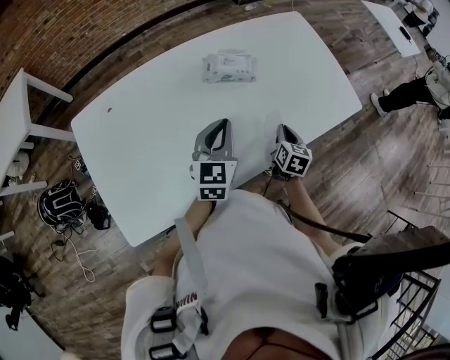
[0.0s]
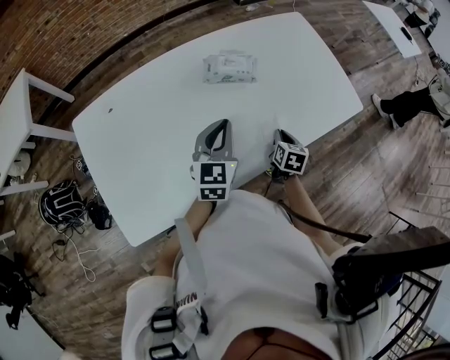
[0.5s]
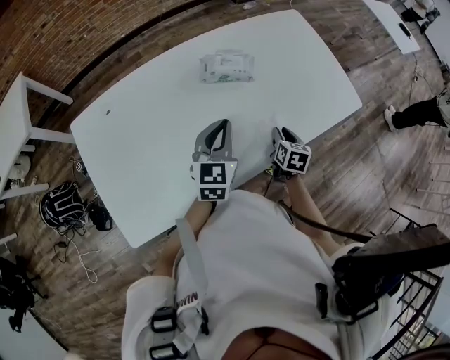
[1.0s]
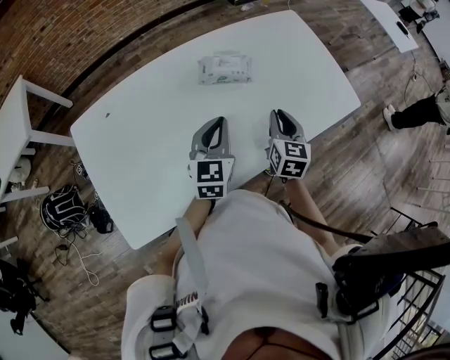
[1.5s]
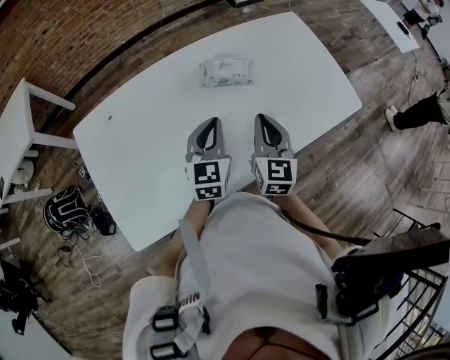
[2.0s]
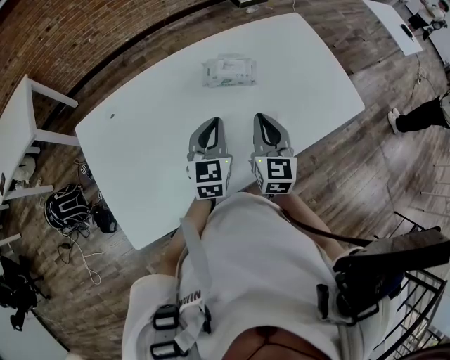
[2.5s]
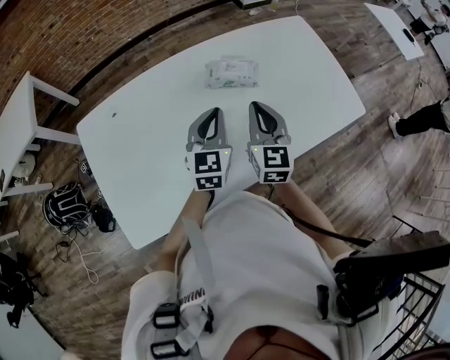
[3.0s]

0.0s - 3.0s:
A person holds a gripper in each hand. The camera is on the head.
0.0s - 1.5s: The right gripper goes about 10 cm upward and to the left.
1.5s - 3.0s: The right gripper is displaced to the left and upward by approximately 10 cm.

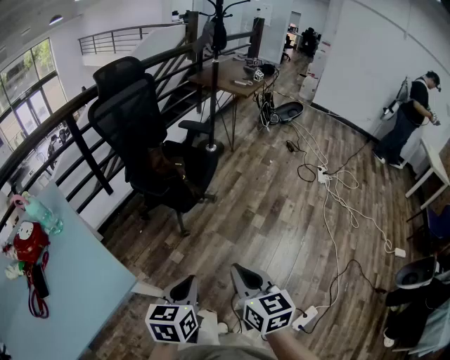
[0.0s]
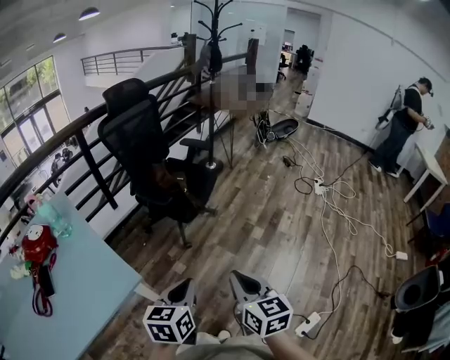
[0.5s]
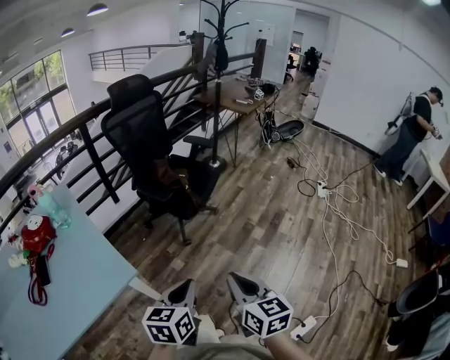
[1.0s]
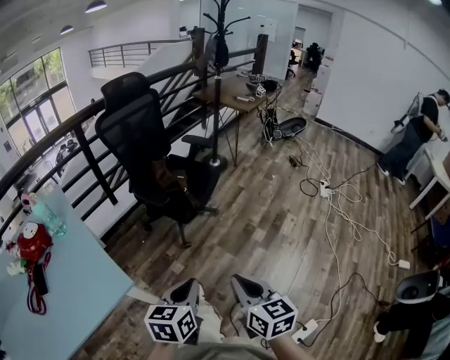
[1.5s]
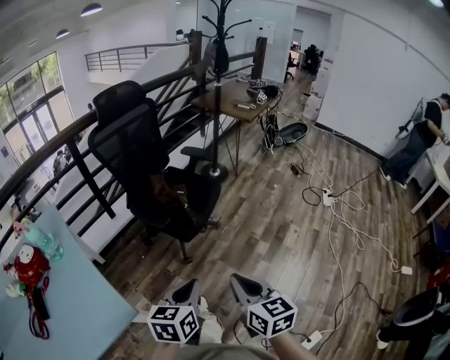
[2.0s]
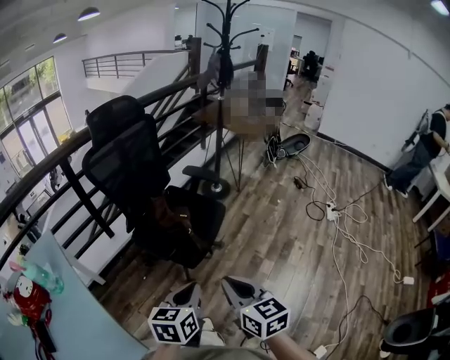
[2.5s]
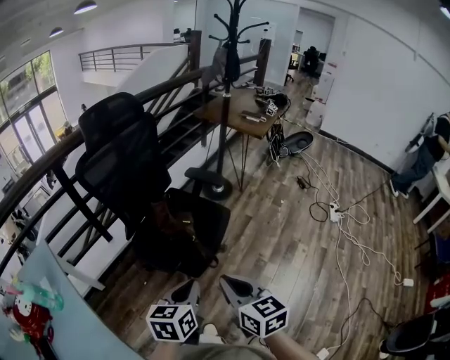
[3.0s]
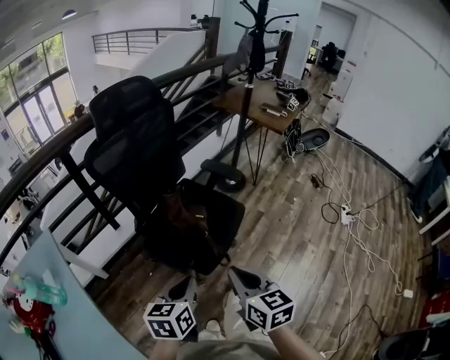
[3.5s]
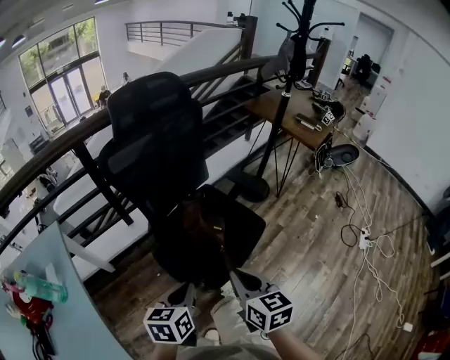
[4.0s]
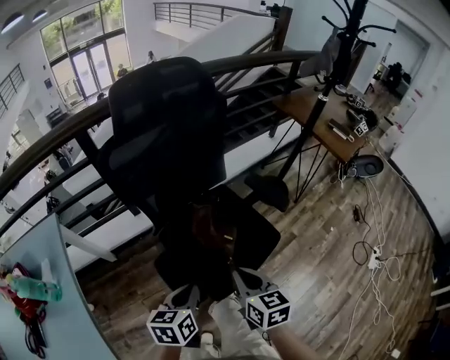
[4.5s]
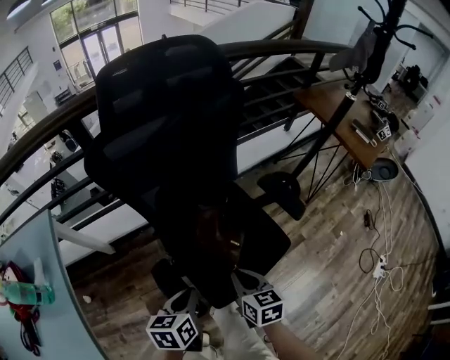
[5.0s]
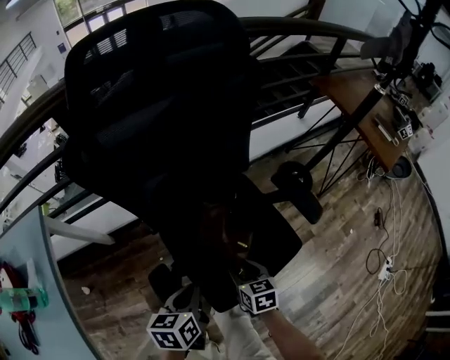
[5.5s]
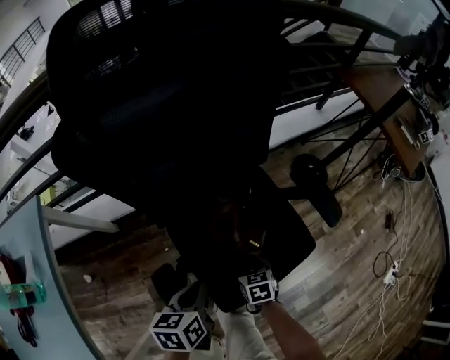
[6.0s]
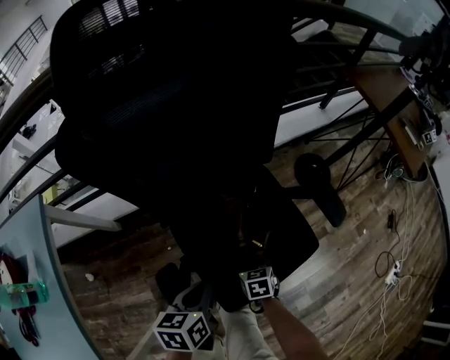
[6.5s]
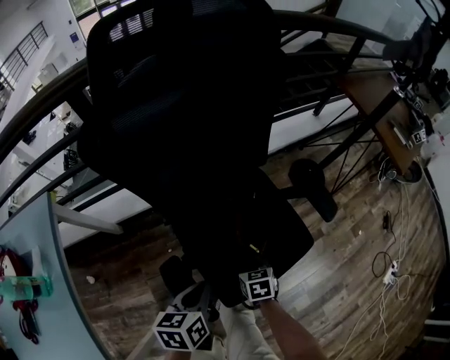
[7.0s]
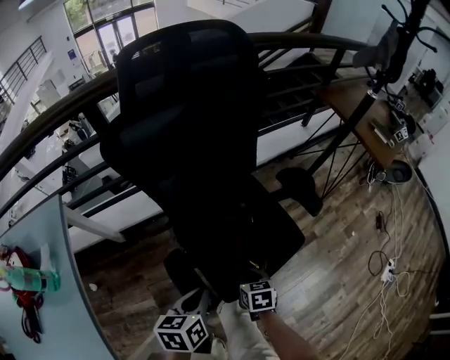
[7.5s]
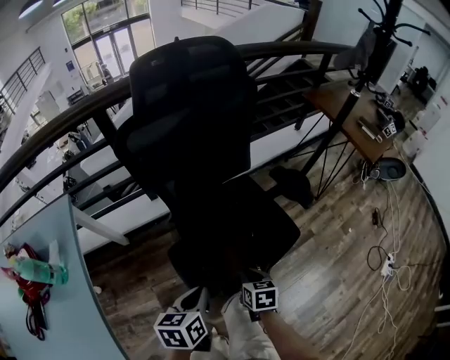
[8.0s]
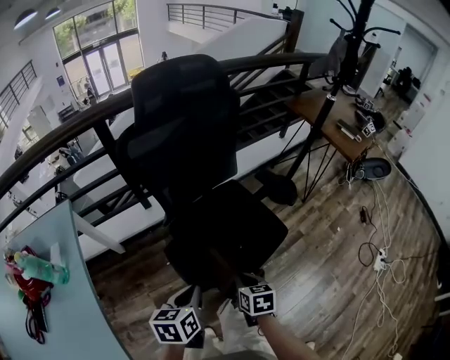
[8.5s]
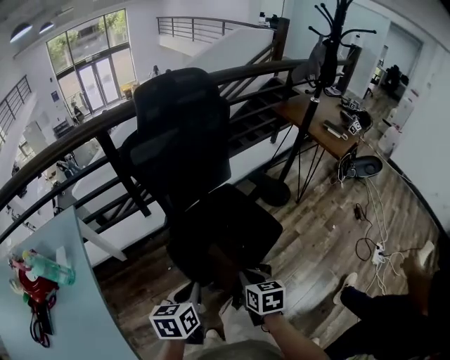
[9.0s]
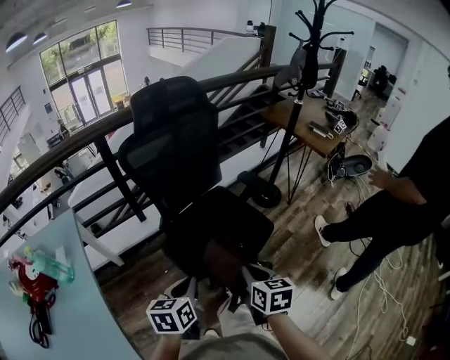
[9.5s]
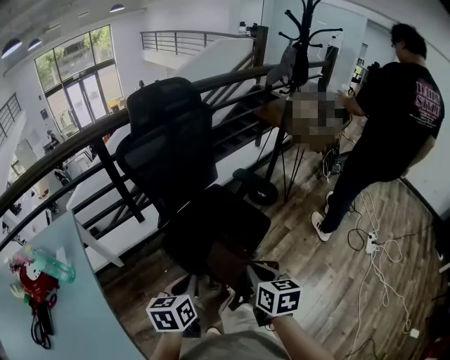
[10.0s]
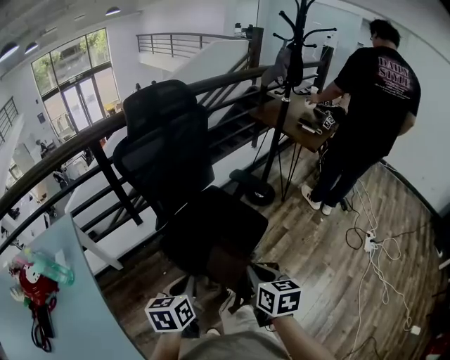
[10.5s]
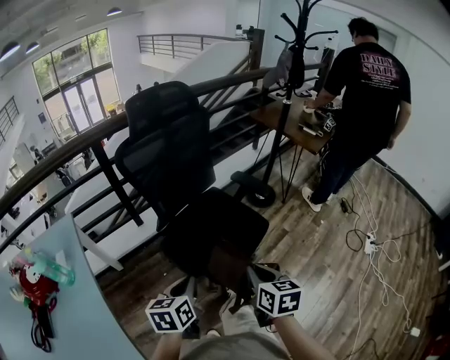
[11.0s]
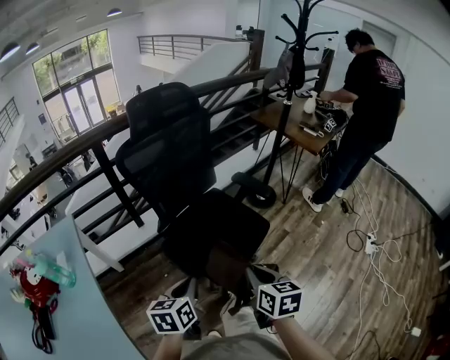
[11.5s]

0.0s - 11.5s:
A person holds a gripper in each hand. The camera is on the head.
0.0s - 2.0s: The grippers both shift forward by some 10 cm.
2.0s - 4.0s: The grippers both shift forward by about 35 cm.
4.0s - 6.0s: The right gripper moves downward and forward, approximately 40 cm, tips its fingers downward by approximately 30 degrees, and opens; the left gripper is displaced forward and downward by some 25 cm, and changes its angle by roughly 30 degrees.
6.0s - 7.5s: The left gripper travels backward and upward by some 10 cm. Meanwhile the right gripper travels upward and backward by approximately 15 cm, and closes up.
7.5s - 9.5s: The left gripper heads backward and upward, covering approximately 15 cm, while the right gripper moves upward and backward, some 30 cm, and turns by roughly 20 degrees.
9.5s - 11.5s: The grippers move only a little.

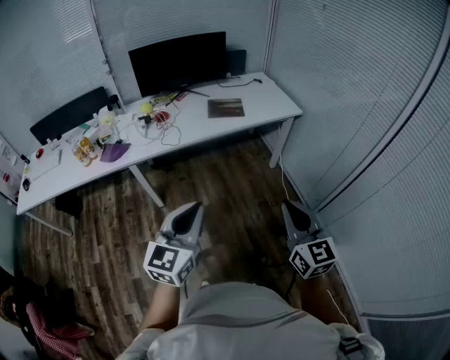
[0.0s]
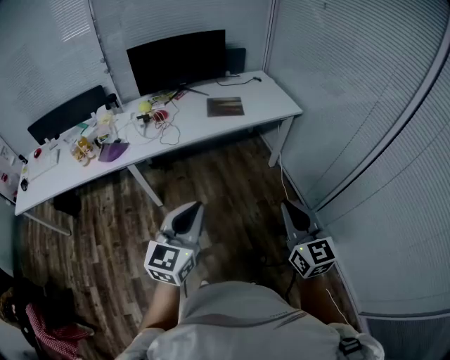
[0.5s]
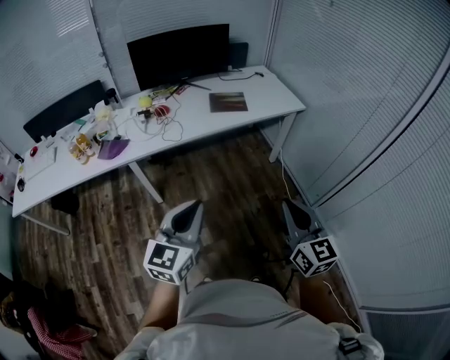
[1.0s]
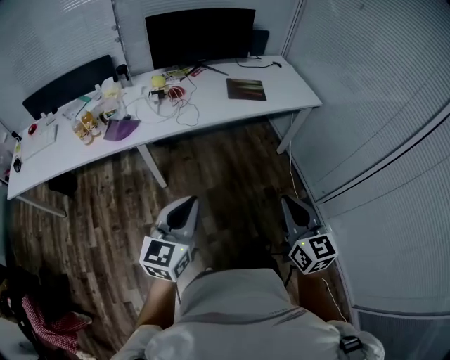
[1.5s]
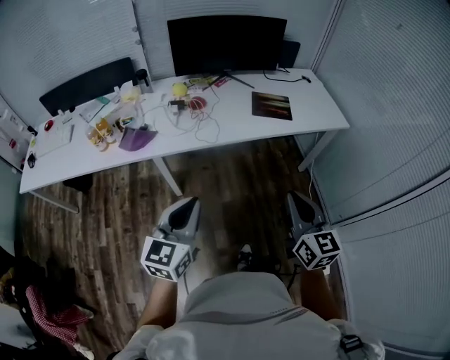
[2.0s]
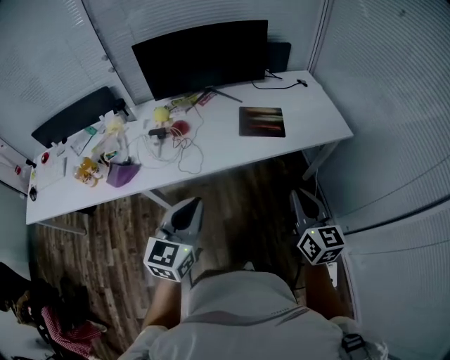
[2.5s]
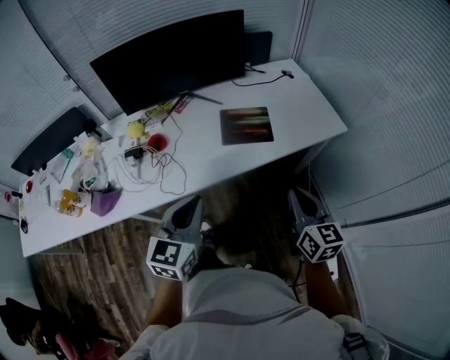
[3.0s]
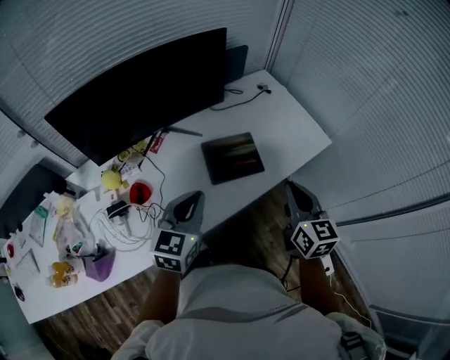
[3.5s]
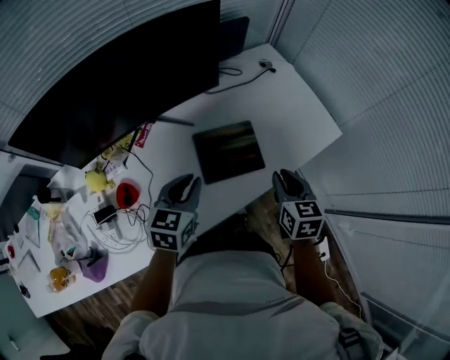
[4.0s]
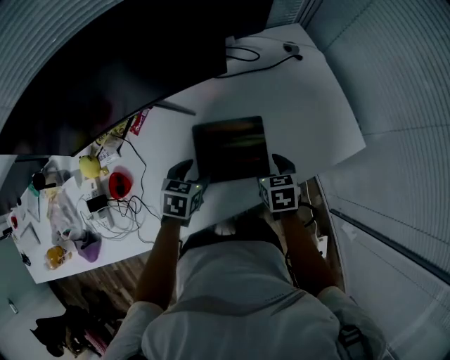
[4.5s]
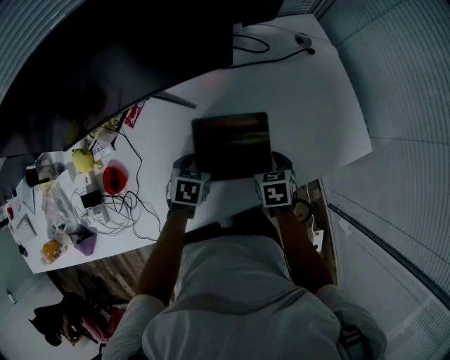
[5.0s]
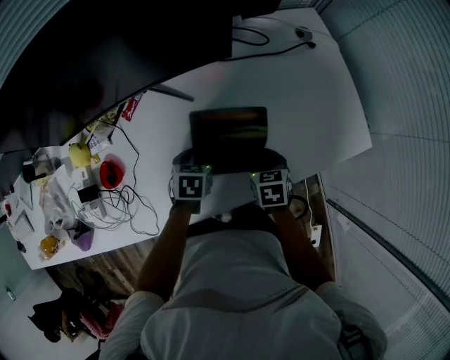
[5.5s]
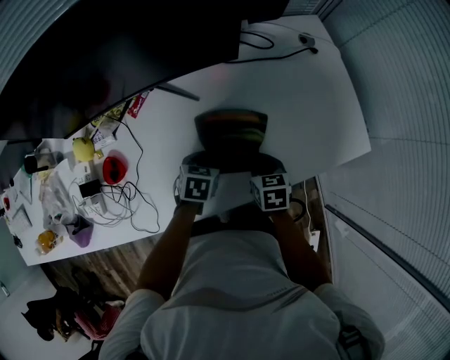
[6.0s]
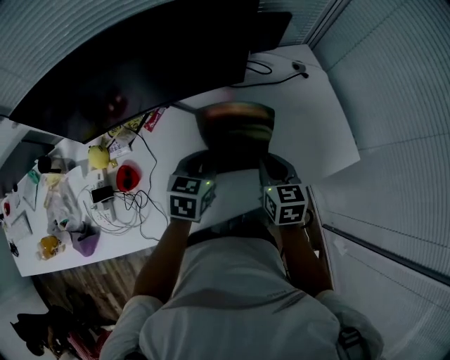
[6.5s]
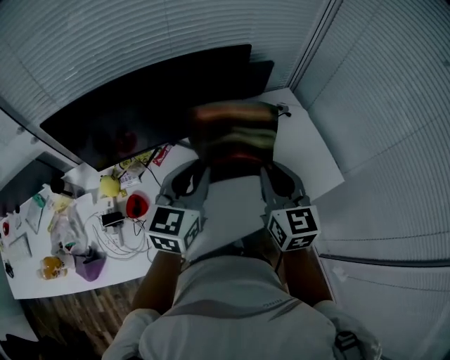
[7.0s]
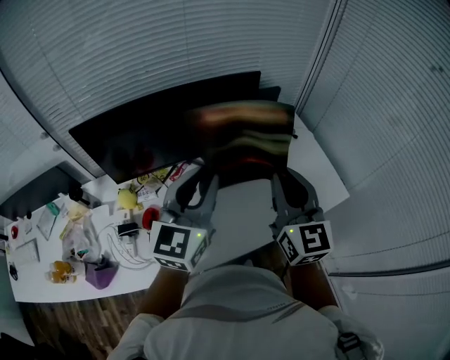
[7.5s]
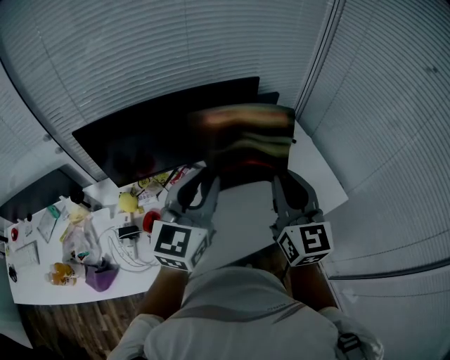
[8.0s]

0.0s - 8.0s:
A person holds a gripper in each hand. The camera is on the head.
0.0s - 2.0s: The right gripper moves forward and to the left, approximately 25 cm, while the left gripper goes some 25 cm to the left and forward.
2.0s - 4.0s: The two grippers travel together, forward, roughly 70 cm. The right gripper turns by about 40 degrees; the left gripper turns by some 30 degrees.
4.0s - 6.0s: The right gripper goes some 20 cm downward and forward, changes its angle by about 30 degrees, and opens, then closes once more, while the left gripper goes roughly 20 cm downward, swivels some 30 degrees, and opens and closes again.
6.0s - 8.0s: Both grippers travel together upward, some 50 cm. The left gripper tips its fingers upward by some 60 degrees. Meanwhile the right gripper tilts its fingers approximately 60 degrees upward.

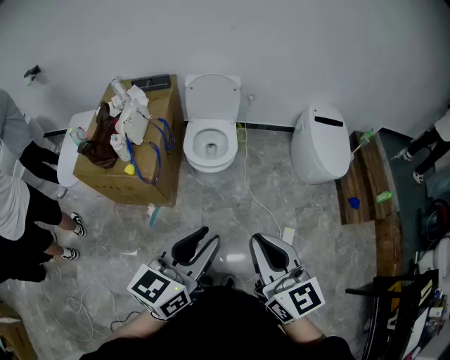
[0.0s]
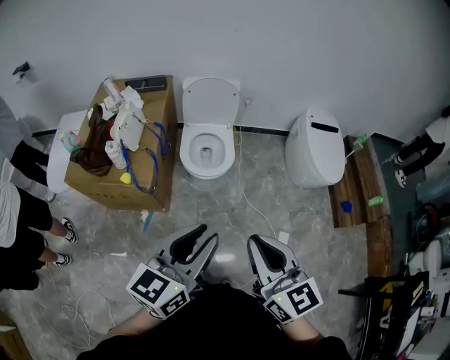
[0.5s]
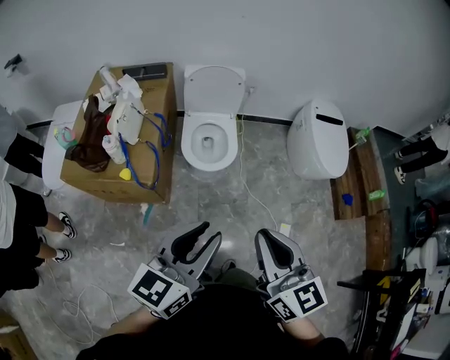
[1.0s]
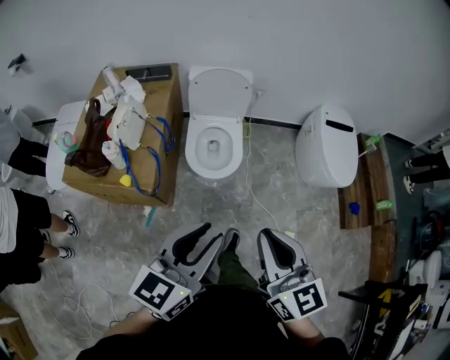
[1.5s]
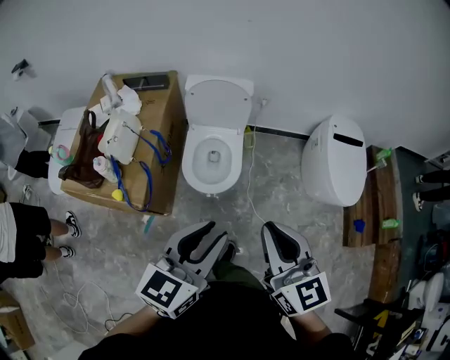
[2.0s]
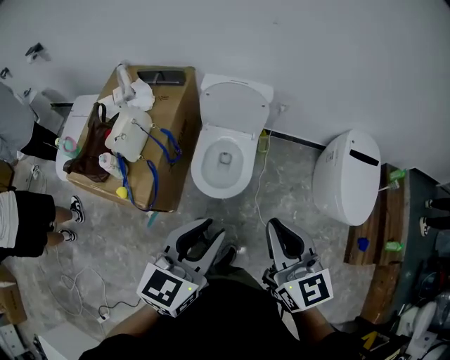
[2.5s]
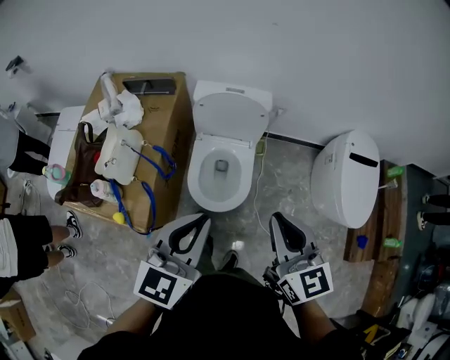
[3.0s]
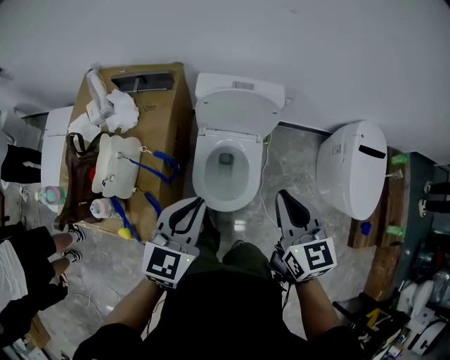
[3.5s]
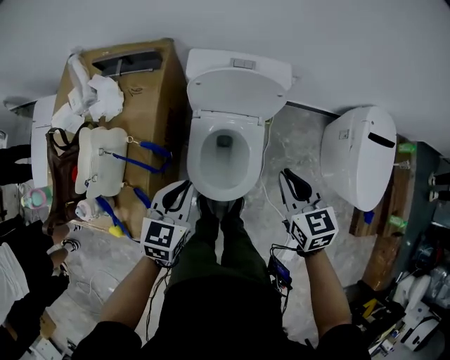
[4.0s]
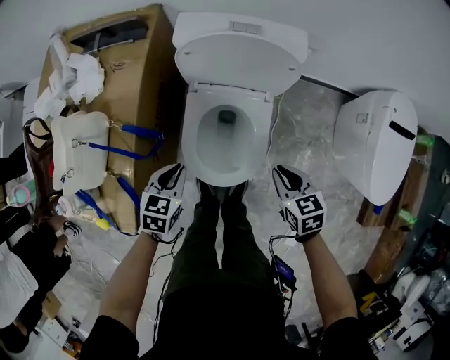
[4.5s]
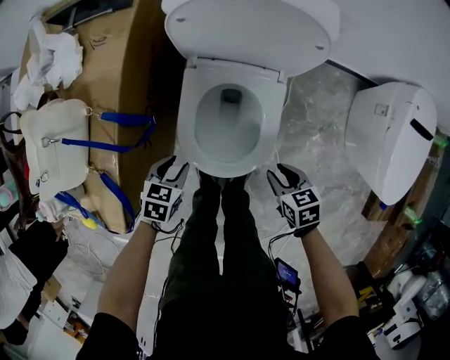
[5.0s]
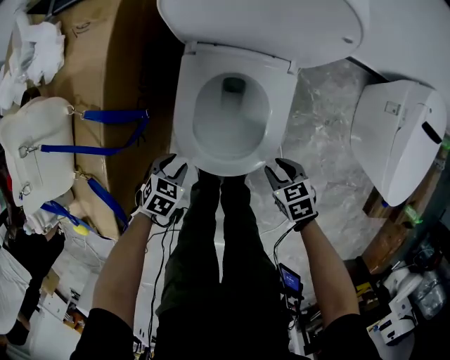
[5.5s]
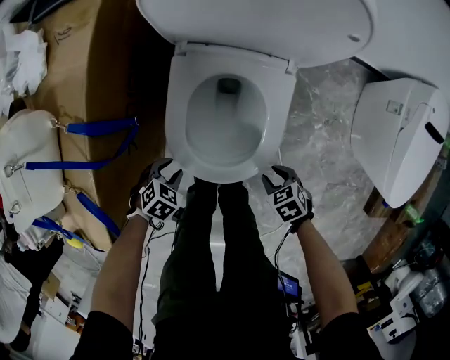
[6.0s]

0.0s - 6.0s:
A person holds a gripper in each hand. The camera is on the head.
0.0s - 2.0s: Both grippers travel together forward, about 30 cm.
2.0s - 4.0s: The right gripper moves forward and downward, some 50 cm, and changes its angle by some 30 degrees; the left gripper moves forward, downward and to the left, approximately 50 cm, changes its angle by some 20 degrees, and closes.
4.0s - 6.0s: Both grippers move downward, about 50 cm. The left gripper angles its fingers downward, by about 40 degrees, and opens. Meanwhile the right gripper angles its fingers downward, by about 40 degrees, and opens.
